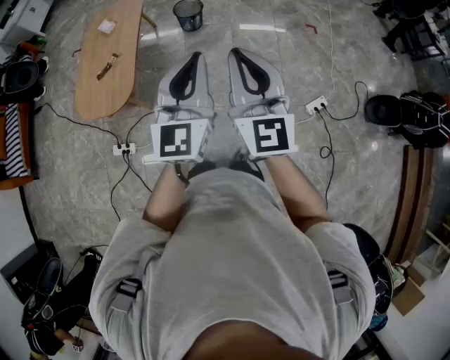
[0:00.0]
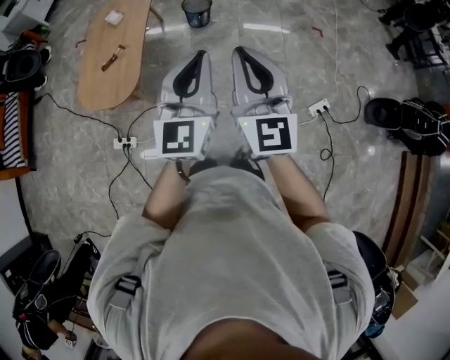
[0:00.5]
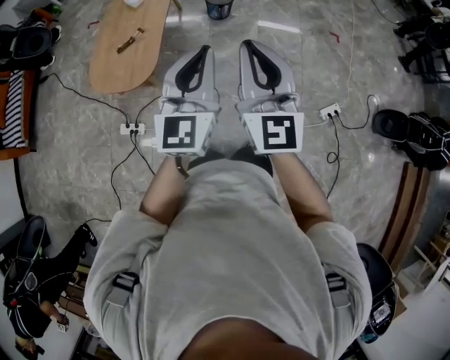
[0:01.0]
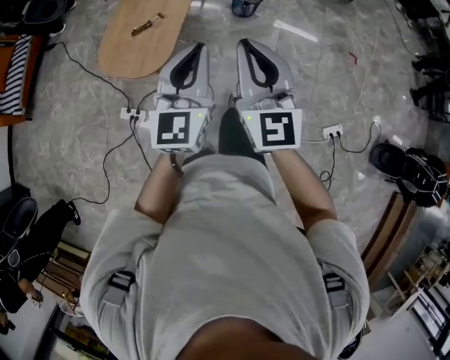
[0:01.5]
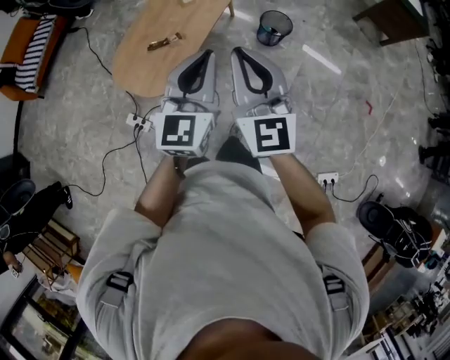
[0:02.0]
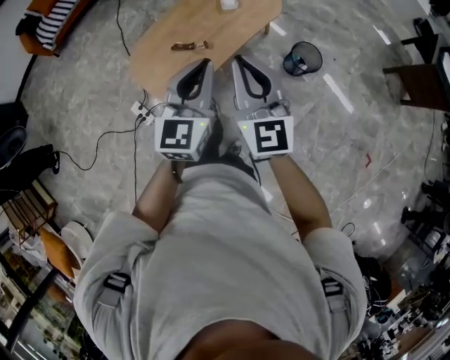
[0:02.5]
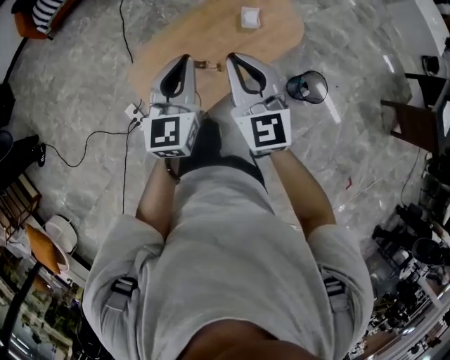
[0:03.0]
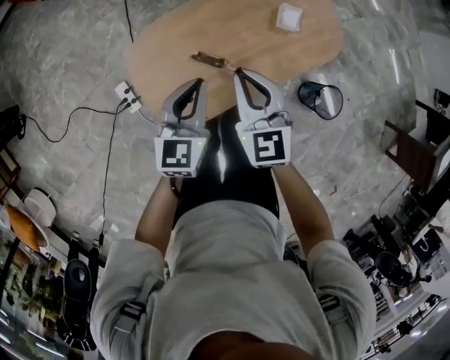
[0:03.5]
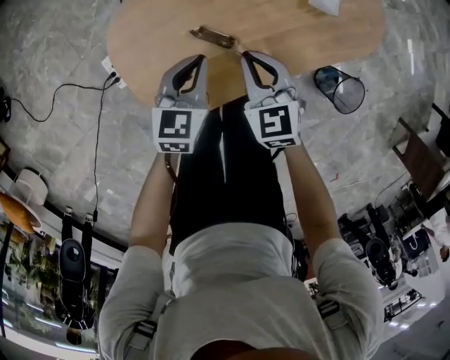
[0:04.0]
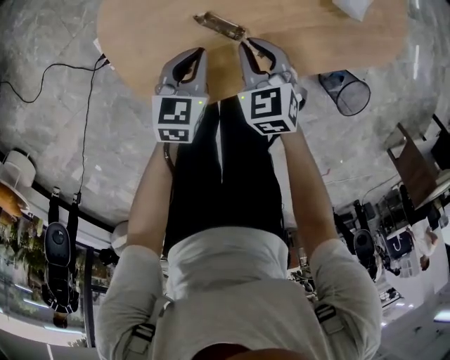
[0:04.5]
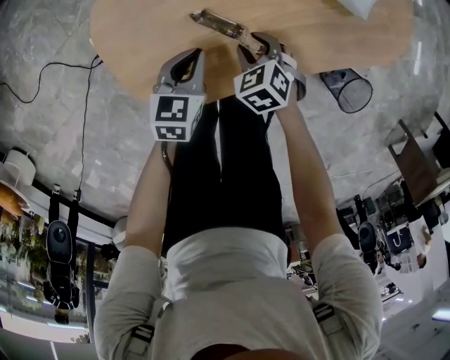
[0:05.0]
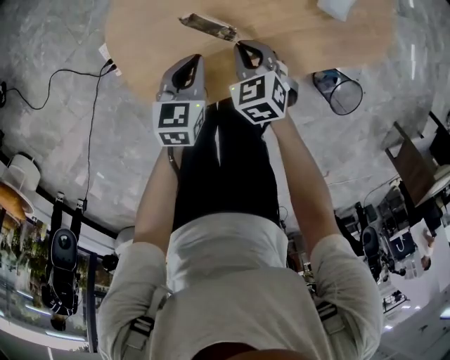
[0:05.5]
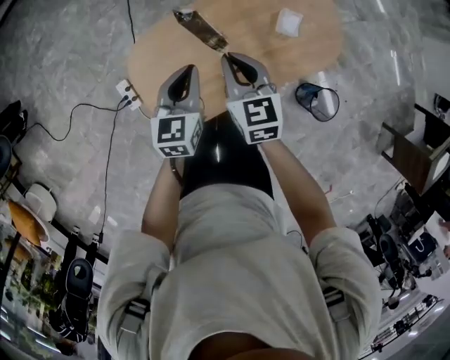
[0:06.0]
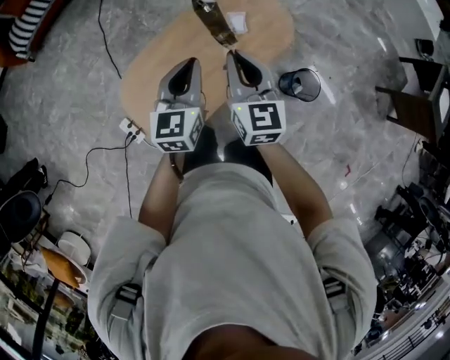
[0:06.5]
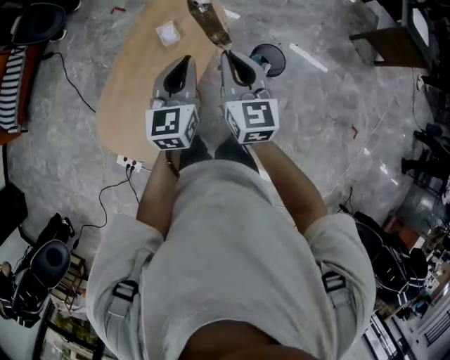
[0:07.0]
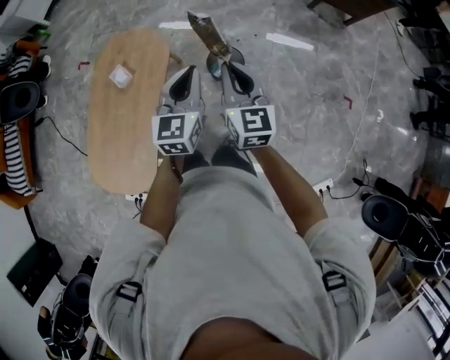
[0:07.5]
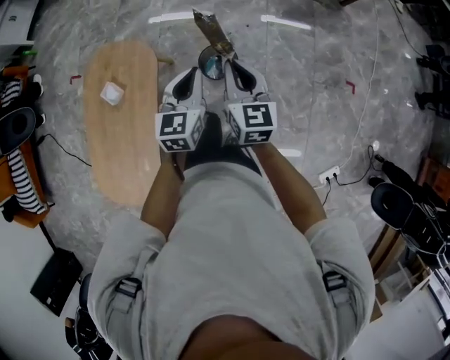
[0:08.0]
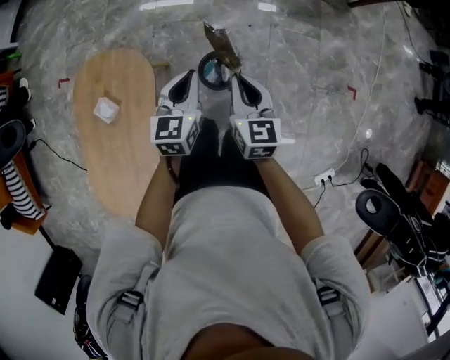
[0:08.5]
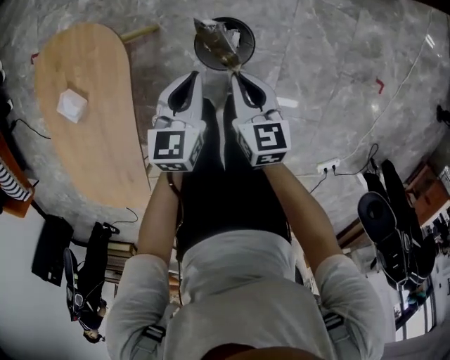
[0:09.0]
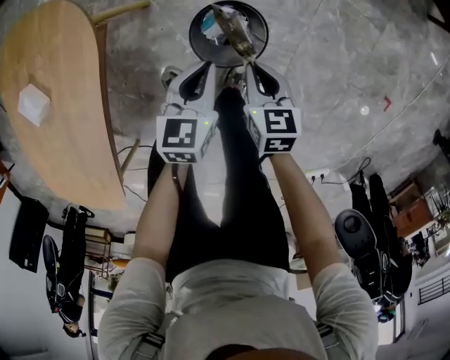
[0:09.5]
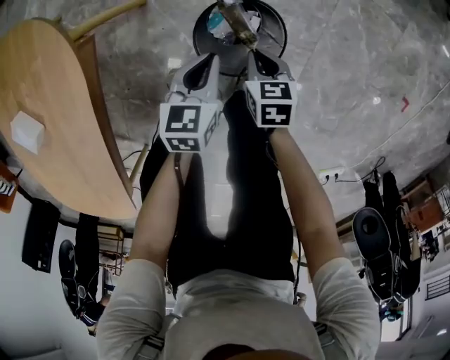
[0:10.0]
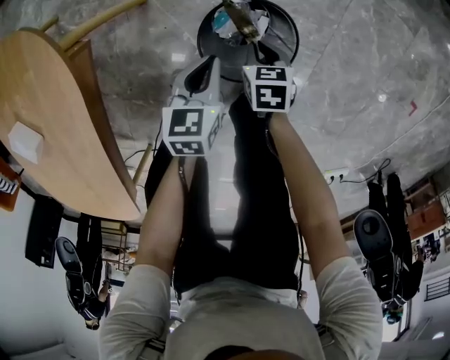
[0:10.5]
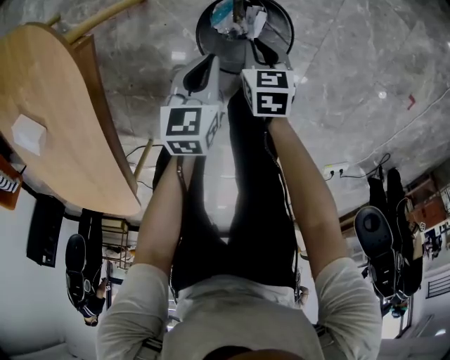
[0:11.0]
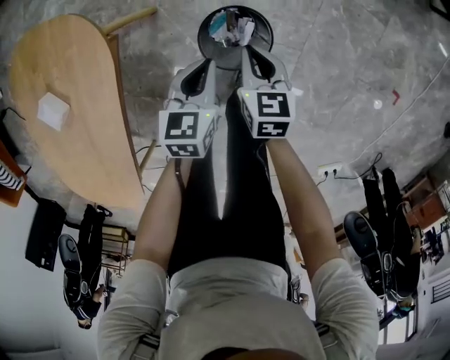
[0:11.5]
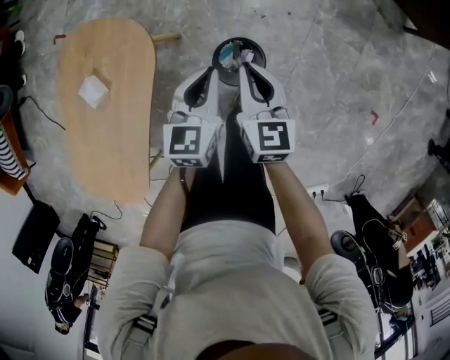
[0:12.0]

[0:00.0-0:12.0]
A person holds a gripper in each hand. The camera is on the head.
0:00.0 to 0:02.0: The left gripper shifts by about 35 cm, and turns by roughly 20 degrees; the right gripper ends up some 35 cm from where it was, and changes its angle by roughly 30 degrees.
0:02.0 to 0:04.0: Both grippers are carried approximately 50 cm. The left gripper shifts about 50 cm downward, and tilts its fingers about 30 degrees downward. Meanwhile the right gripper points its fingers some 40 degrees further downward.
0:04.0 to 0:06.0: Both grippers move upward, about 20 cm. The right gripper opens, then closes once more.
0:06.0 to 0:08.0: Both grippers are carried some 70 cm. The left gripper swivels roughly 60 degrees. The right gripper rotates roughly 70 degrees.
0:08.0 to 0:10.0: The grippers both shift downward by some 60 cm. The left gripper swivels about 30 degrees. The right gripper tilts its fingers some 50 degrees downward.
0:10.0 to 0:12.0: The grippers both shift upward by approximately 40 cm. The right gripper tilts its fingers some 30 degrees upward. Meanwhile the left gripper changes its angle by about 20 degrees.

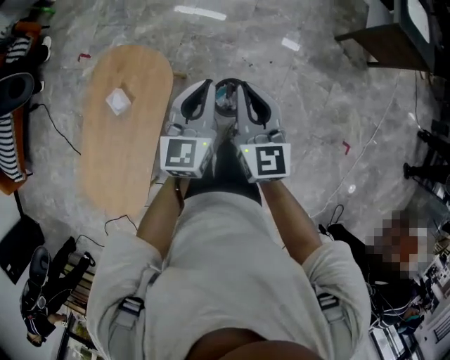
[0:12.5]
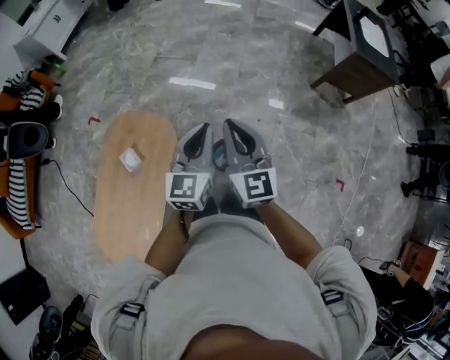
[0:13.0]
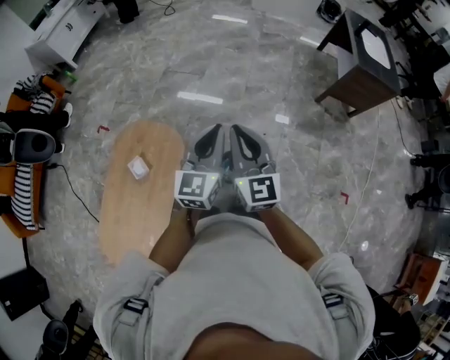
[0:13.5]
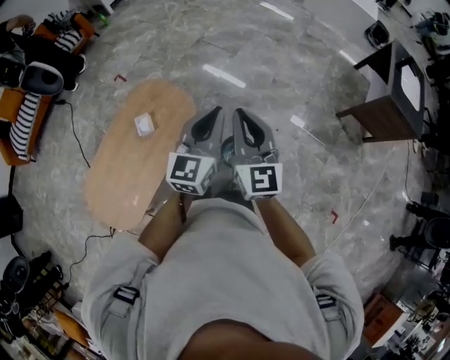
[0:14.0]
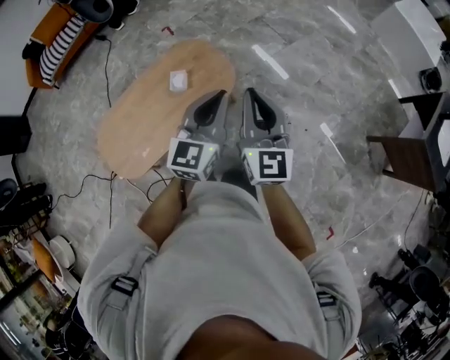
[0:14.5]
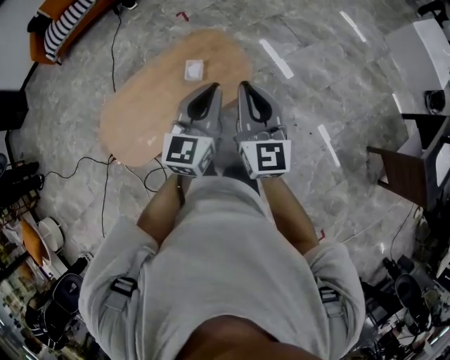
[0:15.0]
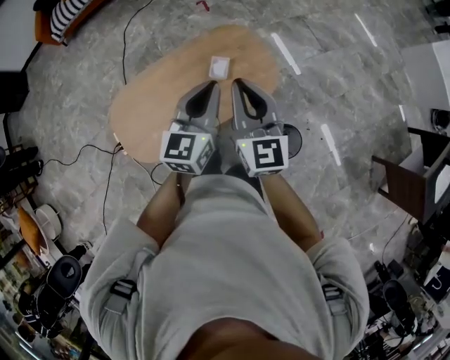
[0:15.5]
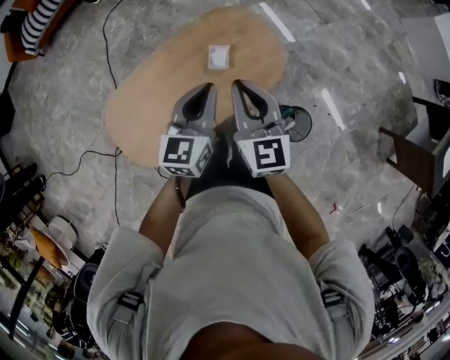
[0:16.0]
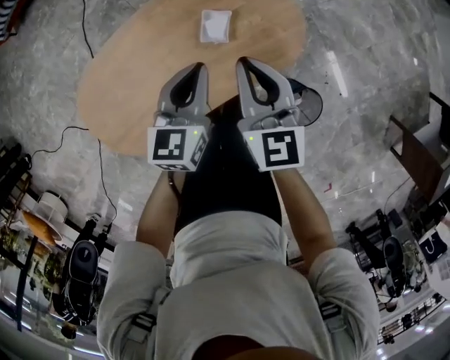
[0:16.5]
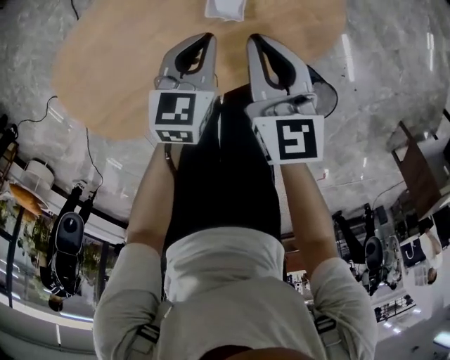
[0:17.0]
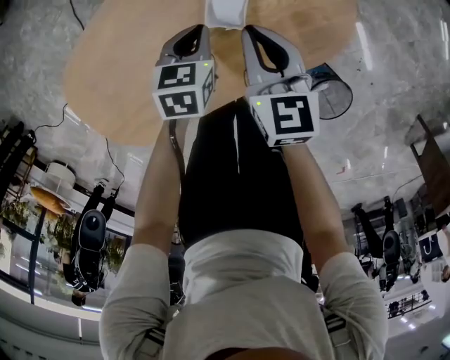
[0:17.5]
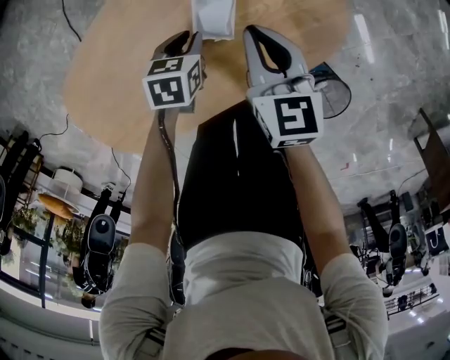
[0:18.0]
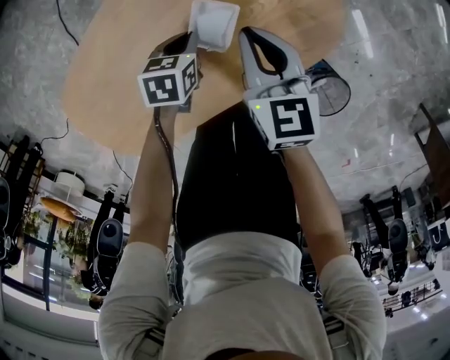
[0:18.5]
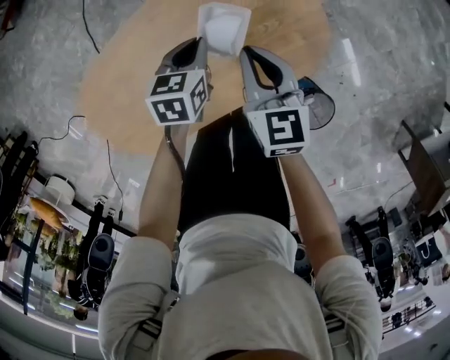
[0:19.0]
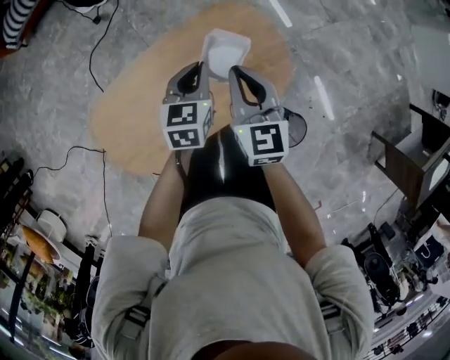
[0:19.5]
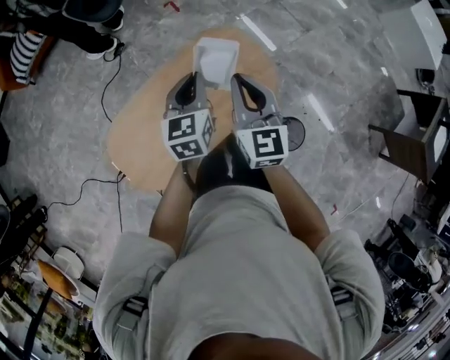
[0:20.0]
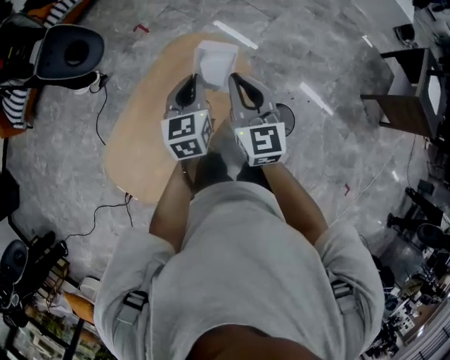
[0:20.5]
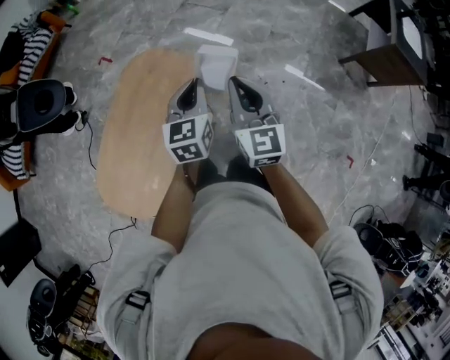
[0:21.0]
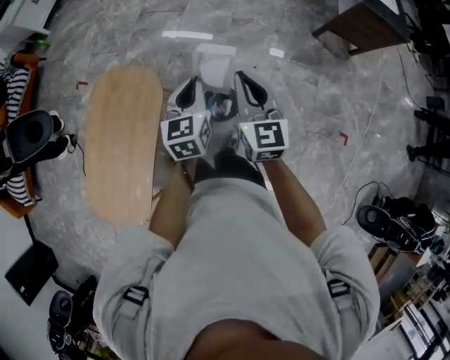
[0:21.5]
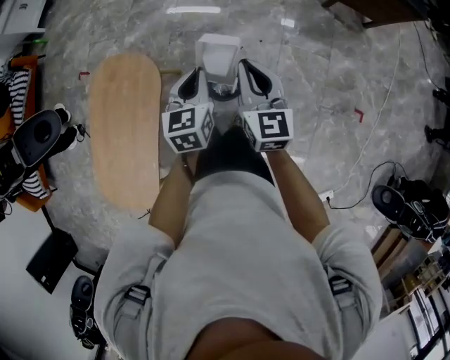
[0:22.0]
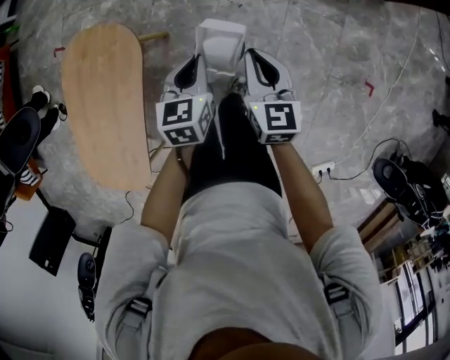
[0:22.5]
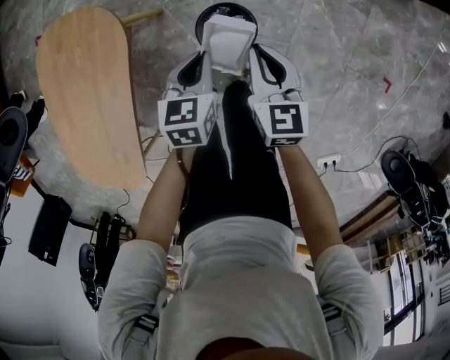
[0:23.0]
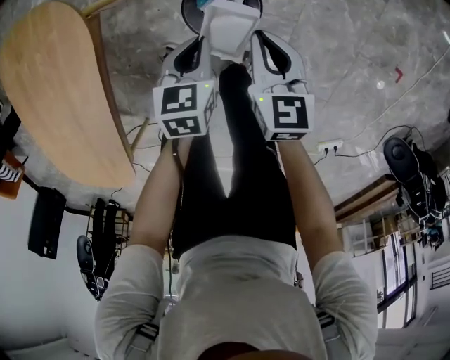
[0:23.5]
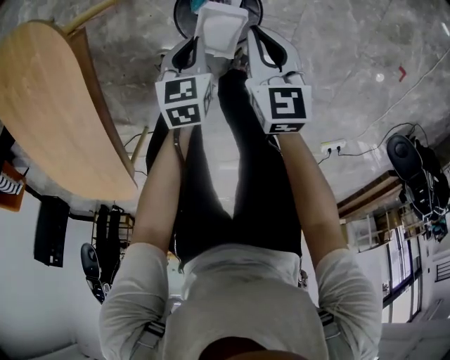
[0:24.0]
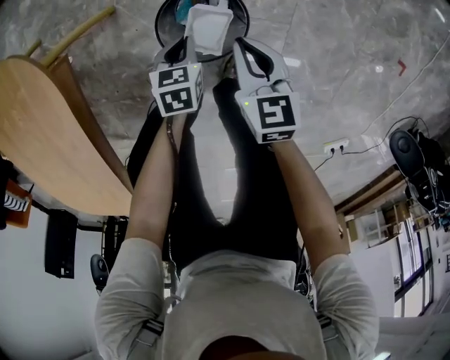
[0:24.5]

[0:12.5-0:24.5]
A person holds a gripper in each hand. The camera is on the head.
0:12.5 to 0:14.5: The left gripper shifts by about 15 cm, and swivels roughly 30 degrees, while the right gripper shifts by some 15 cm, and turns by some 30 degrees.
0:14.5 to 0:16.5: The left gripper moves to the left, downward and forward, roughly 50 cm, and swivels about 30 degrees. Meanwhile the right gripper goes some 40 cm downward, to the left and forward, and changes its angle by roughly 30 degrees.
0:16.5 to 0:18.5: The right gripper shifts some 25 cm downward and forward. Meanwhile the left gripper shifts about 30 cm downward, and angles its fingers downward, by roughly 40 degrees.
0:18.5 to 0:20.5: The grippers both shift upward by about 50 cm. The right gripper turns by about 40 degrees, while the left gripper tips its fingers upward by some 40 degrees.
0:20.5 to 0:22.5: The two grippers travel together, about 50 cm. The left gripper rotates roughly 40 degrees. Meanwhile the right gripper swivels some 40 degrees.
0:22.5 to 0:24.5: Both grippers move downward, approximately 40 cm. The left gripper turns by roughly 20 degrees.

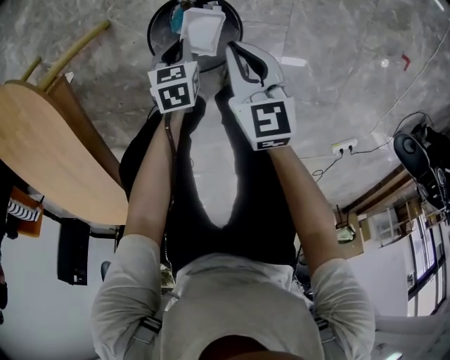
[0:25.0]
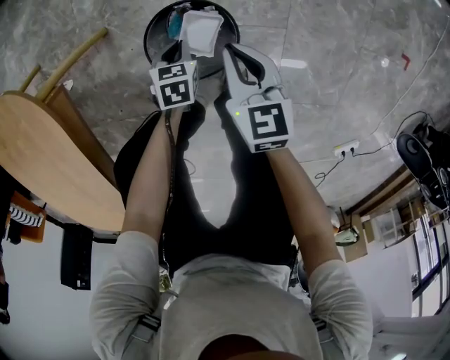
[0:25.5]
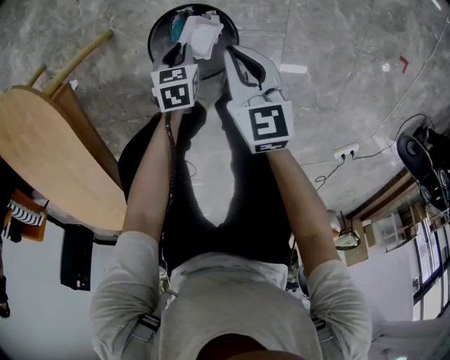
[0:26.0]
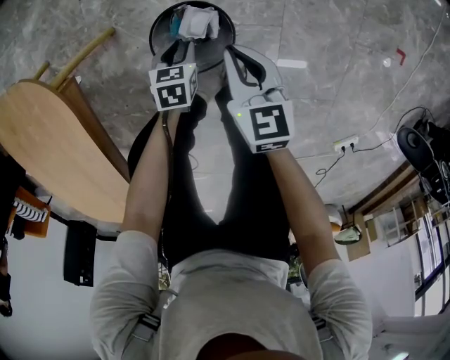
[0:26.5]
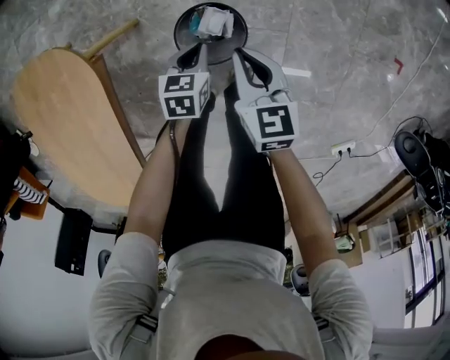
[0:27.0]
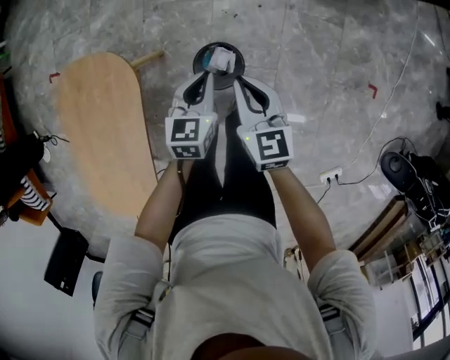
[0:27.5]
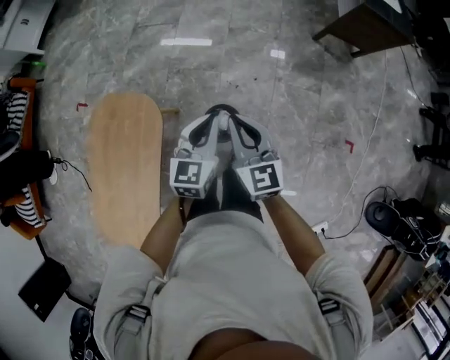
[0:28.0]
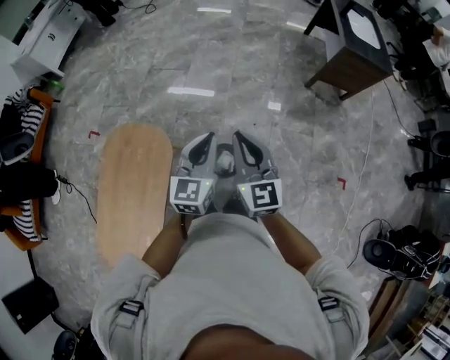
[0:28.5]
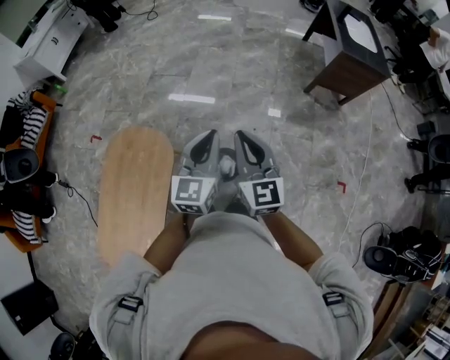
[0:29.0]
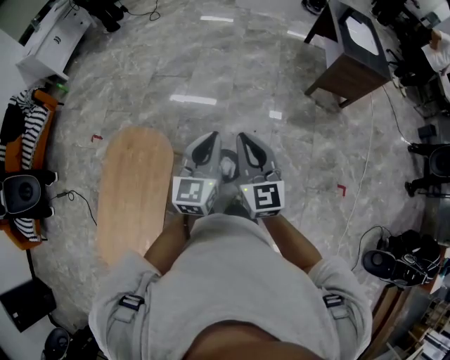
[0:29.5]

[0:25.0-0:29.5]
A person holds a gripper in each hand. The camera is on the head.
0:25.0 to 0:27.0: The grippers both shift upward by approximately 15 cm. The left gripper opens and closes again.
0:27.0 to 0:29.5: Both grippers travel together upward, roughly 60 cm. The right gripper tips its fingers upward by approximately 30 degrees. The left gripper tilts its fingers some 50 degrees upward.
